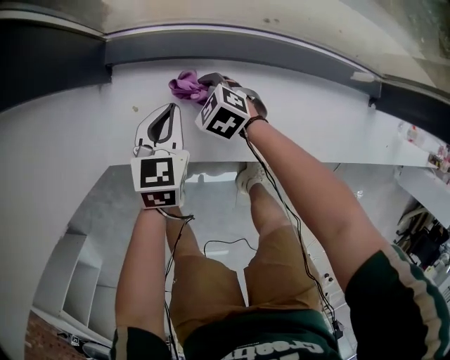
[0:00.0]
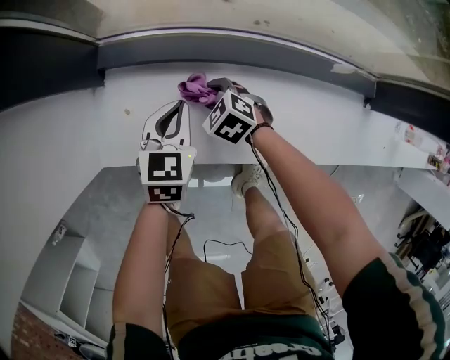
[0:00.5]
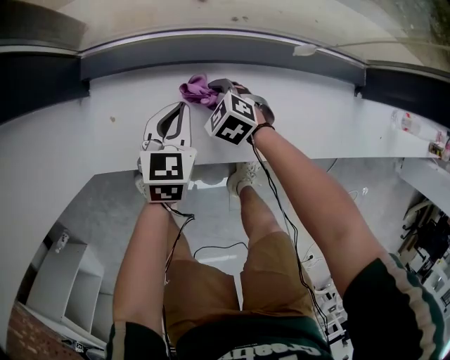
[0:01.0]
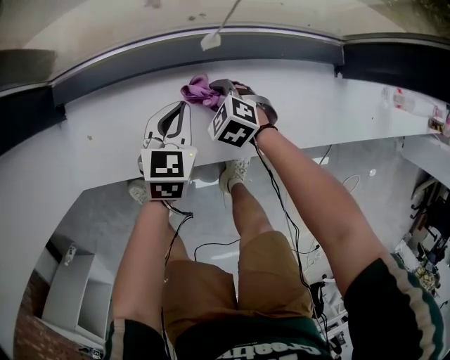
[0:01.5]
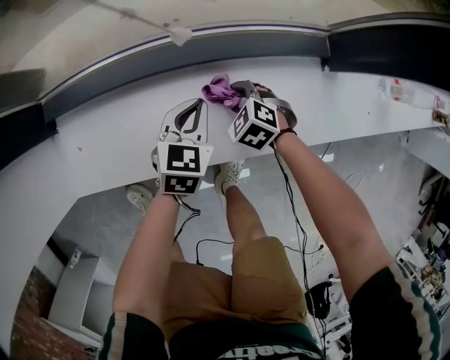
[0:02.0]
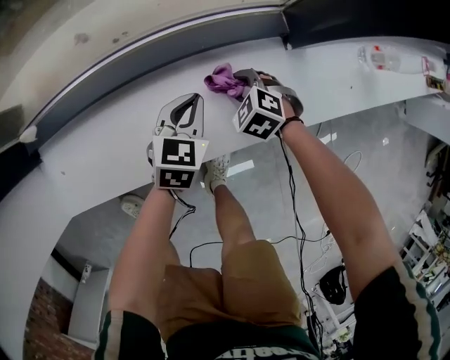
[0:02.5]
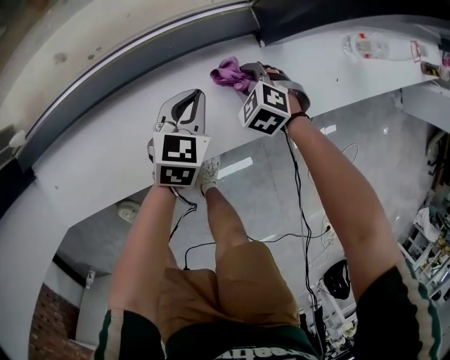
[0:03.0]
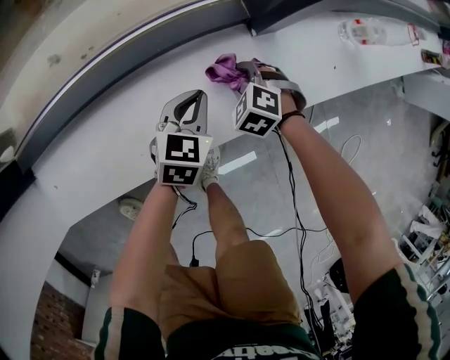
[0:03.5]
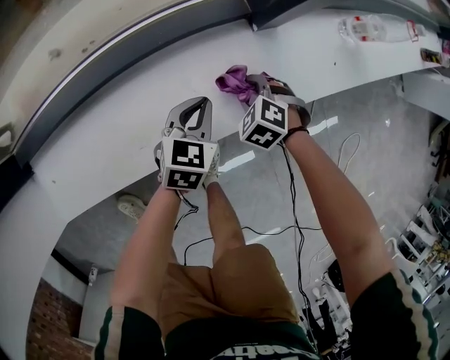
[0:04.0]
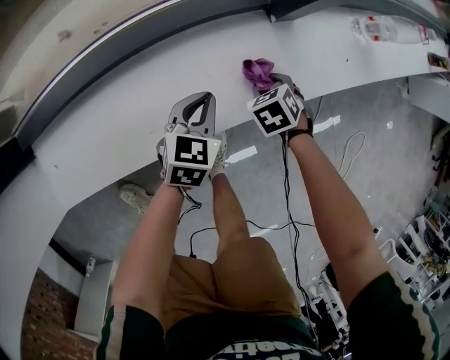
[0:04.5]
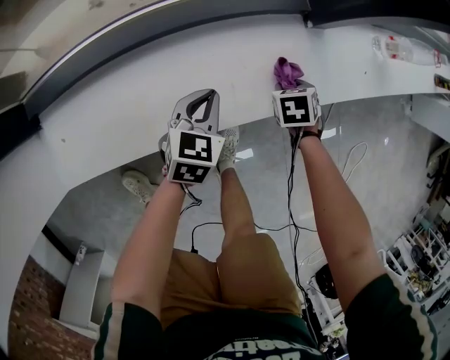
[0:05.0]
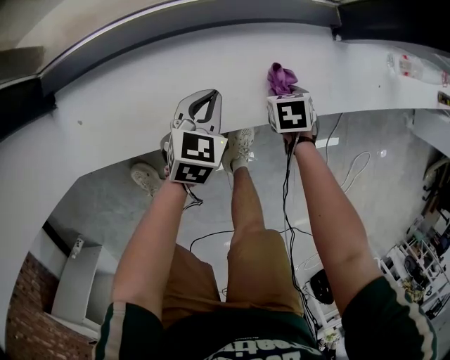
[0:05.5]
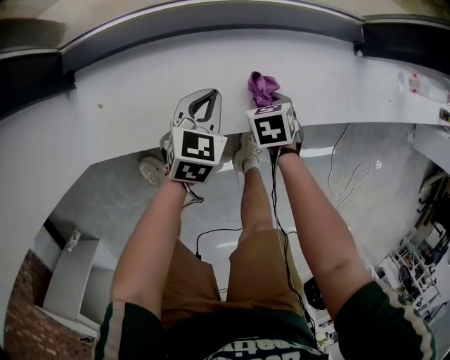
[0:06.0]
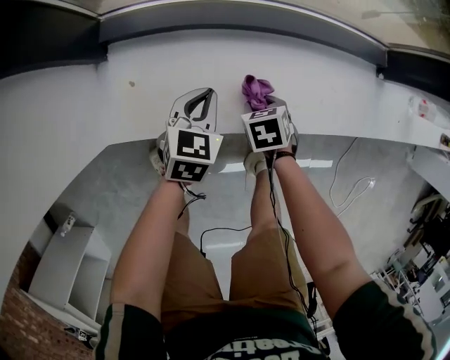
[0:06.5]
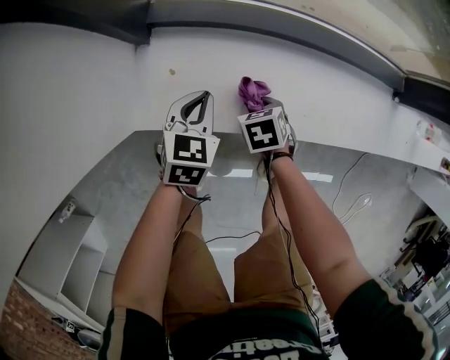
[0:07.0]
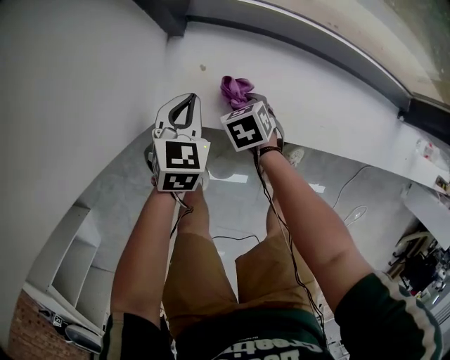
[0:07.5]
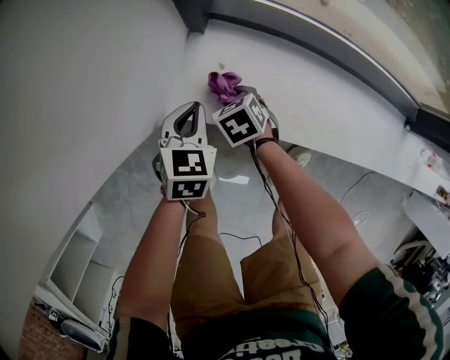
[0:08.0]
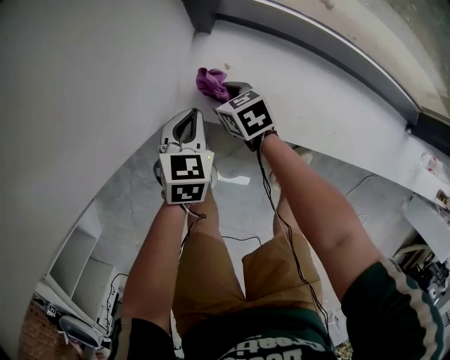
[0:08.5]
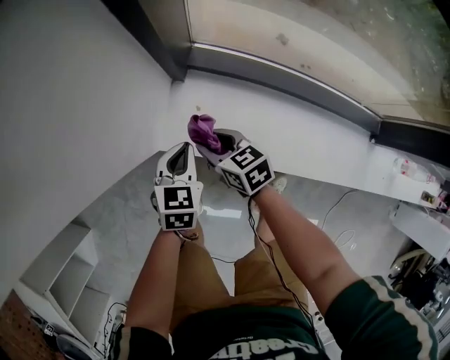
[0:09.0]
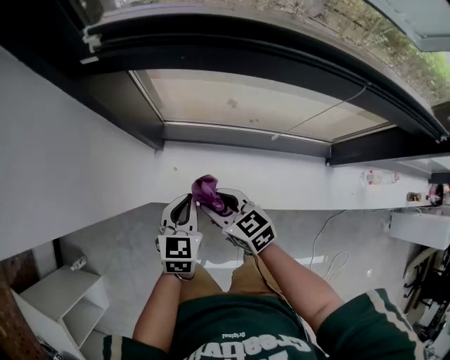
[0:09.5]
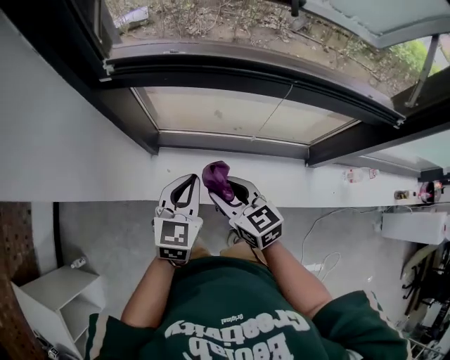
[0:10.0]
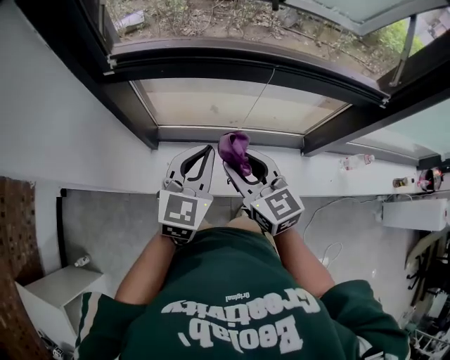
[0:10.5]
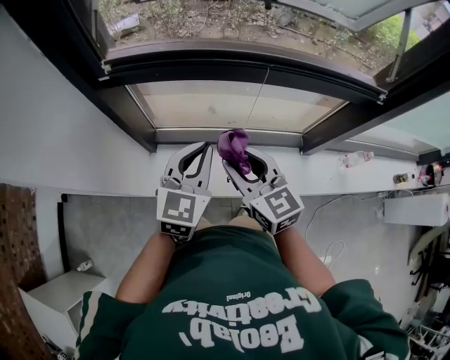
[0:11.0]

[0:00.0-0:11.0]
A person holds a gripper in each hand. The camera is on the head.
0:00.0 to 0:02.0: The two grippers go about 30 cm to the right. The left gripper turns by roughly 20 degrees.
0:02.0 to 0:03.5: The left gripper moves some 20 cm; the right gripper moves approximately 20 cm.
0:03.5 to 0:05.5: The left gripper shifts by approximately 20 cm, while the right gripper shifts by roughly 10 cm, and twists approximately 50 degrees clockwise, seen from behind.
0:05.5 to 0:07.5: The pair of grippers is taken some 40 cm. The right gripper changes its angle by approximately 40 degrees. Meanwhile the left gripper rotates about 30 degrees.
0:07.5 to 0:09.0: The right gripper moves upward, about 15 cm, and angles its fingers upward, by approximately 40 degrees, while the left gripper shifts about 10 cm upward.
0:09.0 to 0:11.0: Both grippers move upward, roughly 40 cm. The right gripper changes its angle by about 40 degrees; the left gripper changes its angle by about 40 degrees.

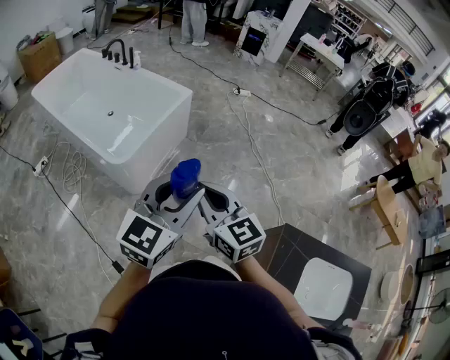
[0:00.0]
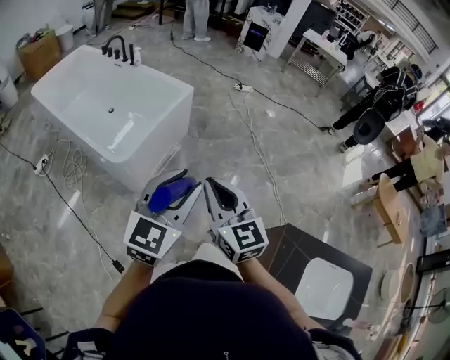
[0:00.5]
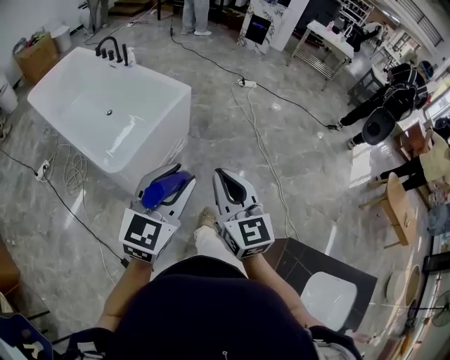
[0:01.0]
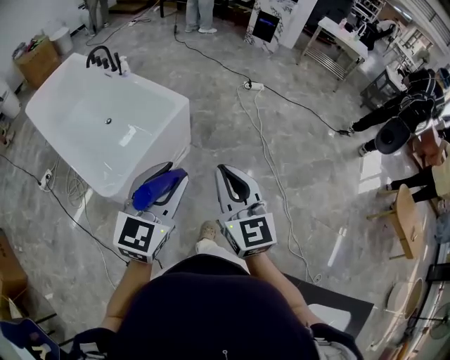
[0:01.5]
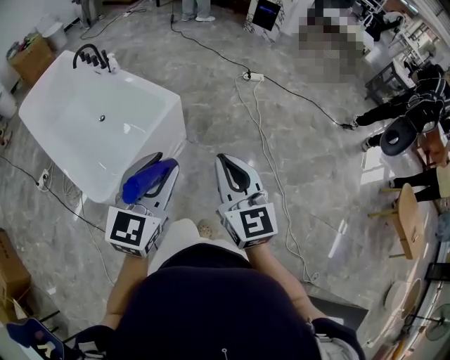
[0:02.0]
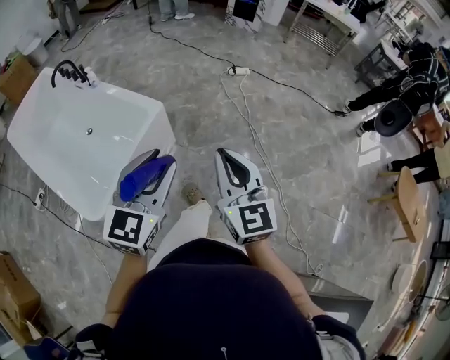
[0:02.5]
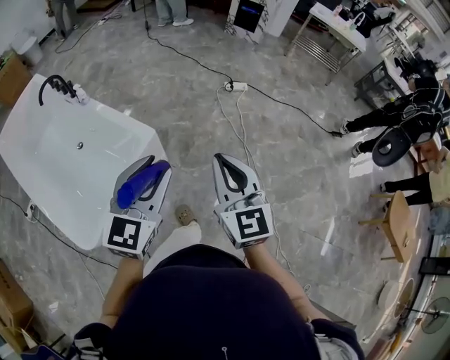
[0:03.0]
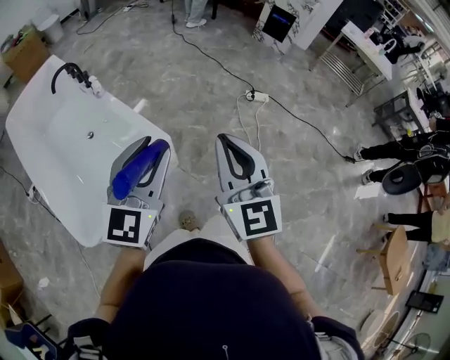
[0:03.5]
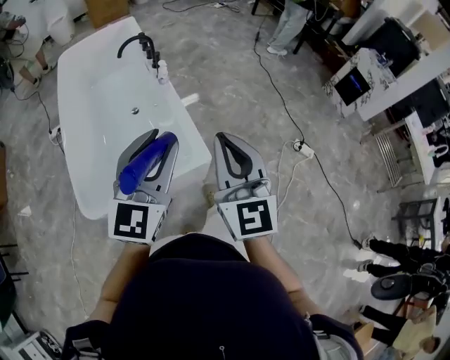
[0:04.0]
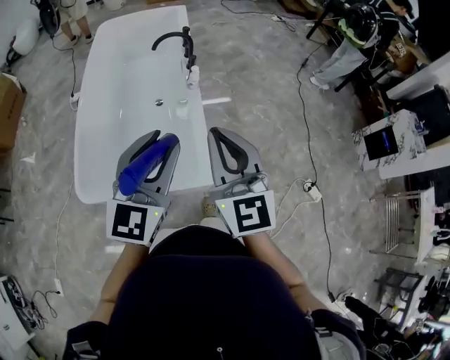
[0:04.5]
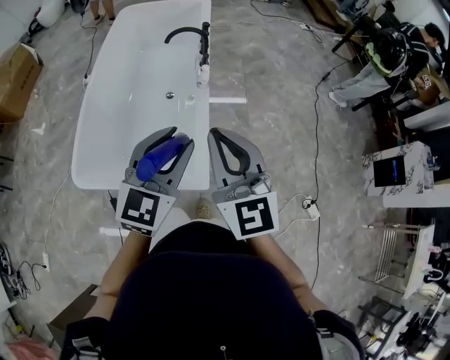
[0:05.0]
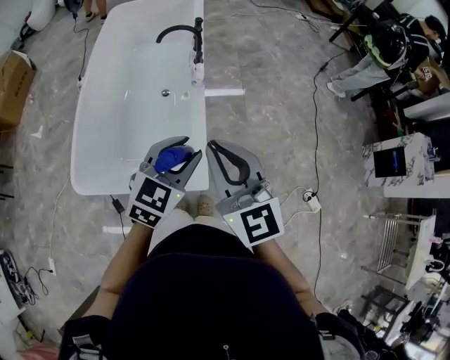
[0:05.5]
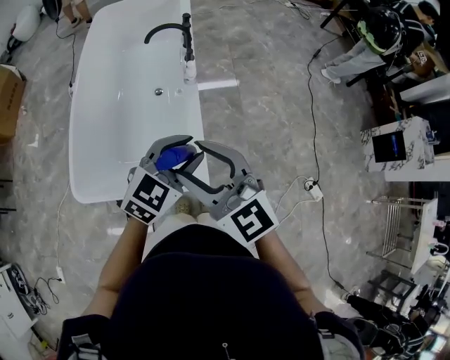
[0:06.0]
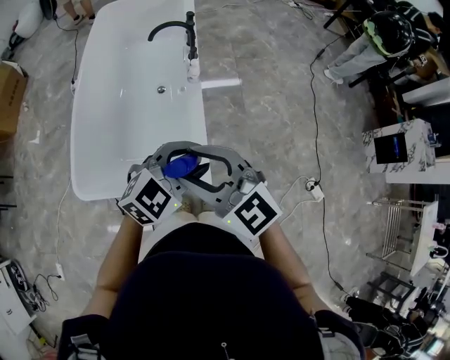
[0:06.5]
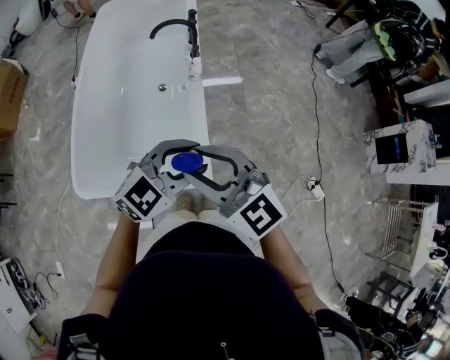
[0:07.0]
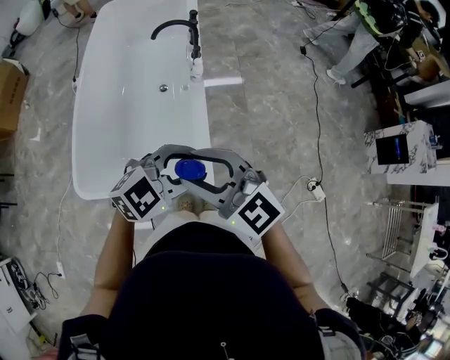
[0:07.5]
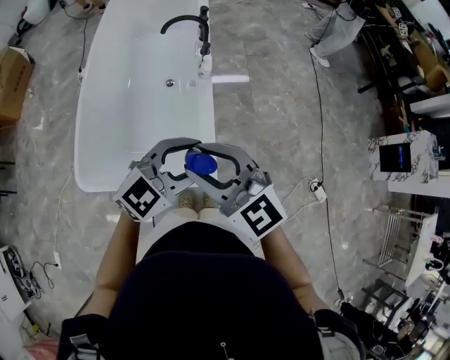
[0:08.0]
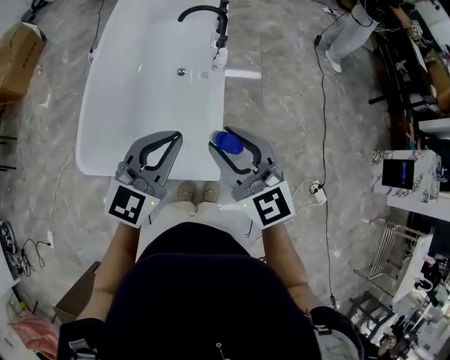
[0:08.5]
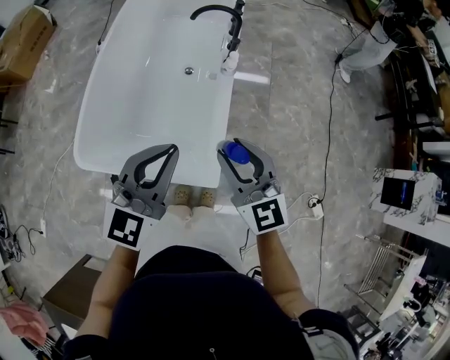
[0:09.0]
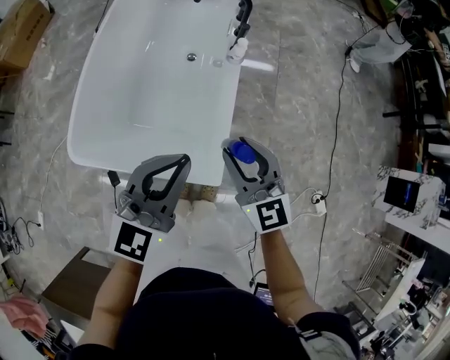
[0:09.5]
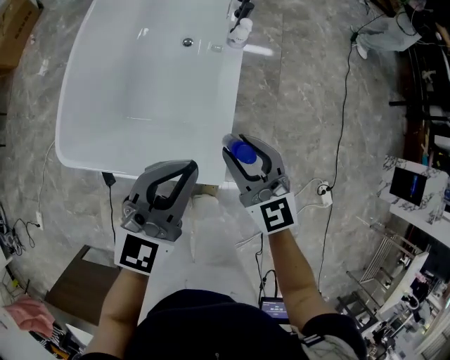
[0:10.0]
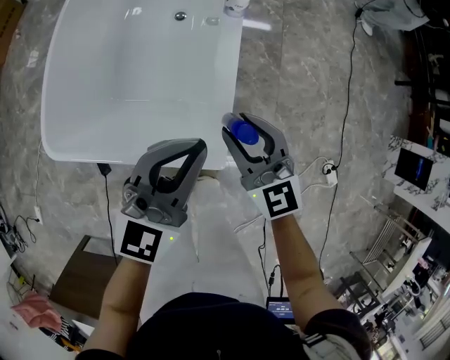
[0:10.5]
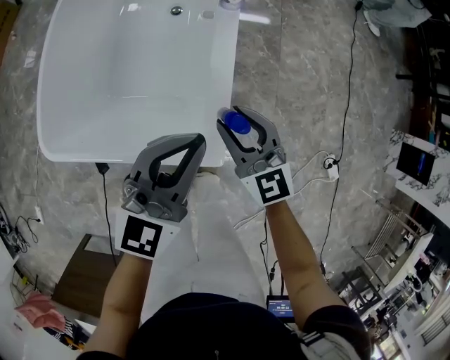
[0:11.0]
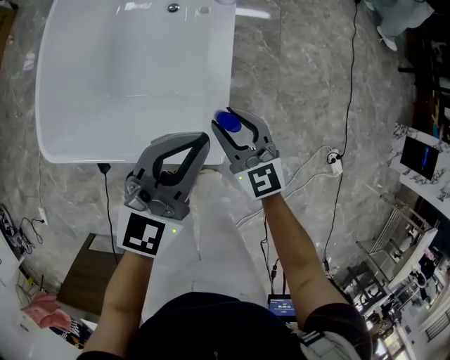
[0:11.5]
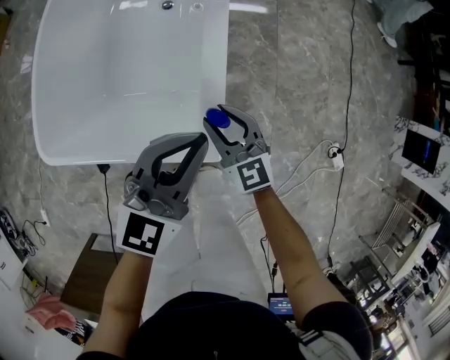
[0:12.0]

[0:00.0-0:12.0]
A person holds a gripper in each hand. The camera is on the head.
0:00.0 to 0:02.0: The left gripper travels forward by roughly 35 cm, while the right gripper shifts some 40 cm forward and to the right.
0:02.0 to 0:04.0: The left gripper ends up approximately 35 cm from where it was, and turns by roughly 40 degrees; the right gripper shifts by some 40 cm, and turns by some 30 degrees.
0:04.0 to 0:06.0: The left gripper shifts some 25 cm forward, downward and to the right, and turns by roughly 30 degrees; the right gripper heads forward, covering about 15 cm, rotates some 50 degrees, and opens its fingers.
0:08.0 to 0:10.0: The left gripper travels downward and to the left by about 10 cm, rotates about 40 degrees, and closes. The right gripper shifts approximately 20 cm downward.
0:10.0 to 0:12.0: The left gripper travels downward by some 10 cm, while the right gripper moves downward, some 15 cm.

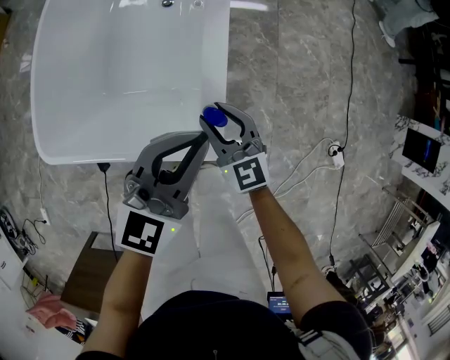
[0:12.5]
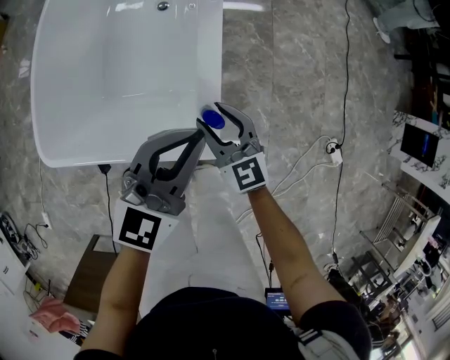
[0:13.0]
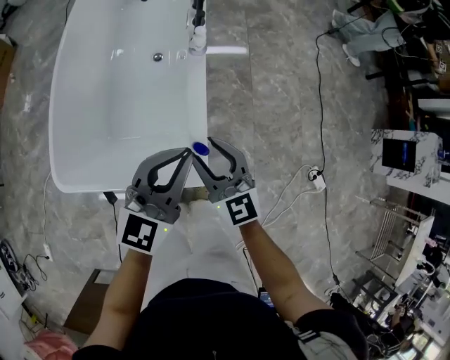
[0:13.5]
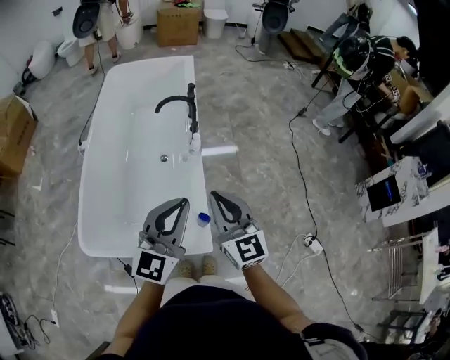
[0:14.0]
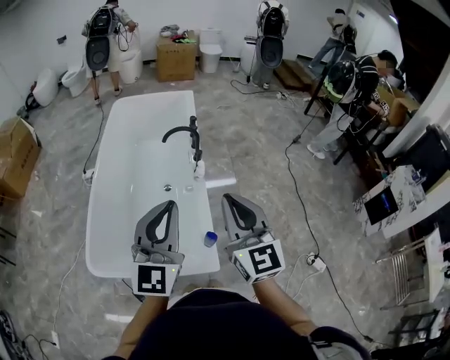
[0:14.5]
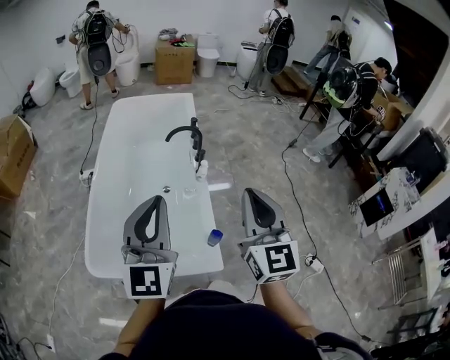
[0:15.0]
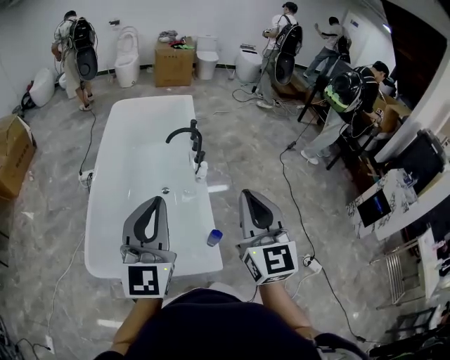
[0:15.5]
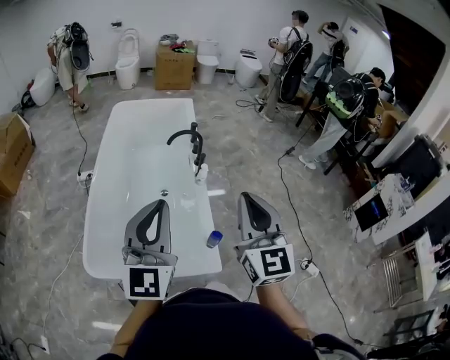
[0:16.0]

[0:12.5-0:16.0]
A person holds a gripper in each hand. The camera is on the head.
0:12.5 to 0:14.5: Both grippers move upward, some 40 cm. The left gripper rotates about 30 degrees, while the right gripper rotates roughly 30 degrees, and closes up.
0:14.5 to 0:16.0: The left gripper shifts about 5 cm to the left, while the right gripper changes place by approximately 5 cm.
